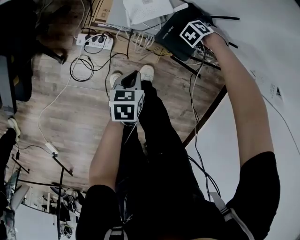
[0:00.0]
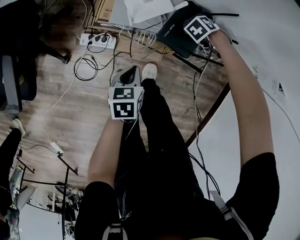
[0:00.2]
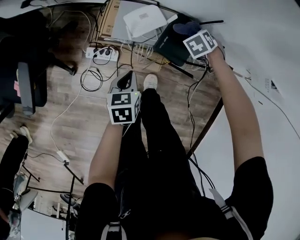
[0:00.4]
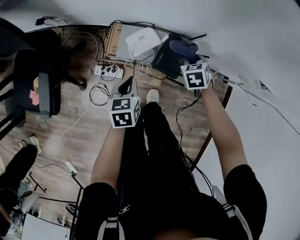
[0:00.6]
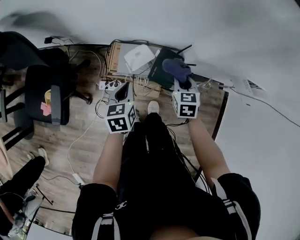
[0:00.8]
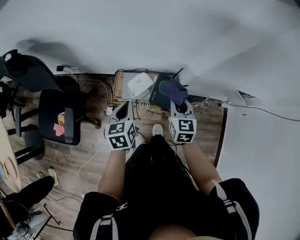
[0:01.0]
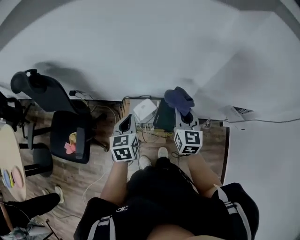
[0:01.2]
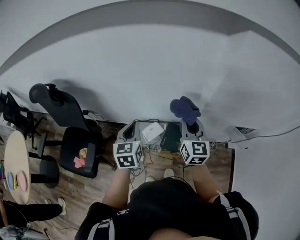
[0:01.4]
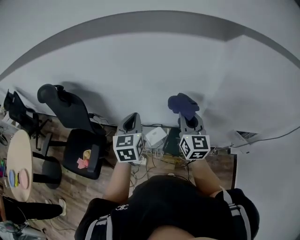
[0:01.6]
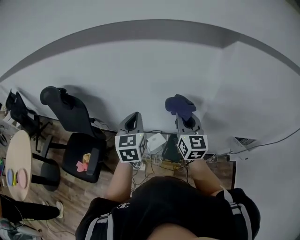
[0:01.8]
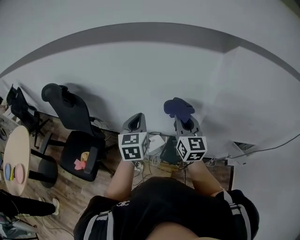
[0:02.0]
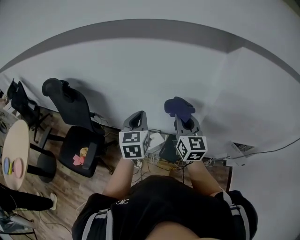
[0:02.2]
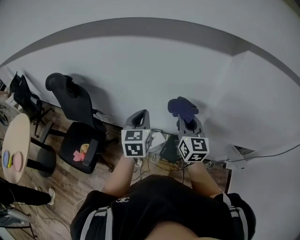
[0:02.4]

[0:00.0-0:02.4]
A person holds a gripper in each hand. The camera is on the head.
0:00.0 to 0:01.2: The two grippers go about 50 cm upward. The left gripper rotates approximately 40 degrees. Meanwhile the right gripper angles its fingers upward, by some 50 degrees.
0:01.2 to 0:02.4: The two grippers go some 20 cm upward.
